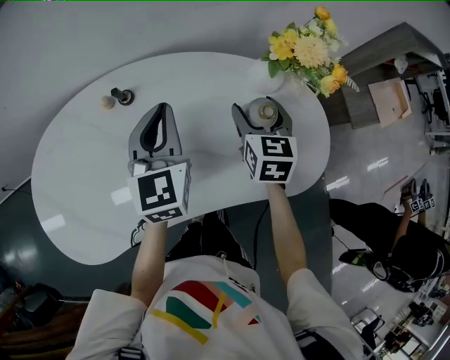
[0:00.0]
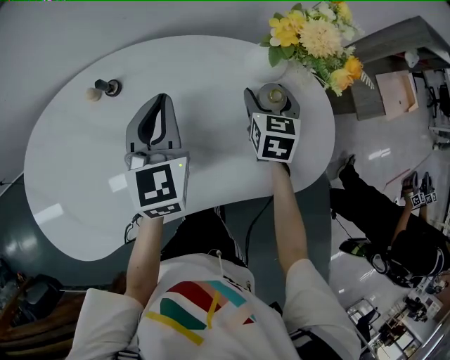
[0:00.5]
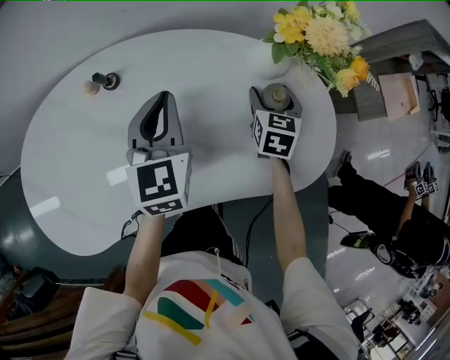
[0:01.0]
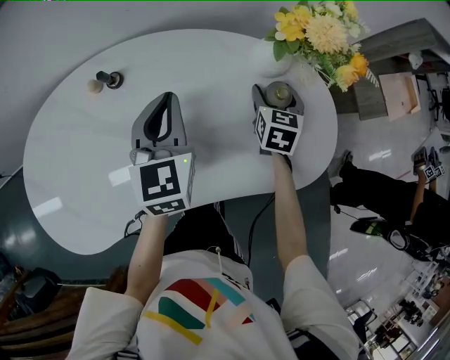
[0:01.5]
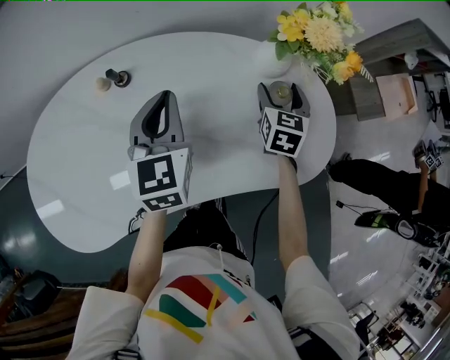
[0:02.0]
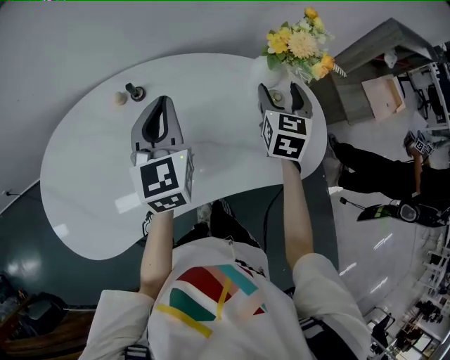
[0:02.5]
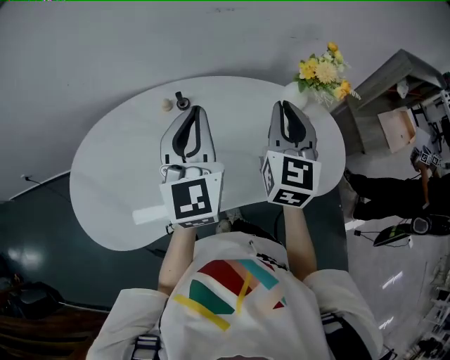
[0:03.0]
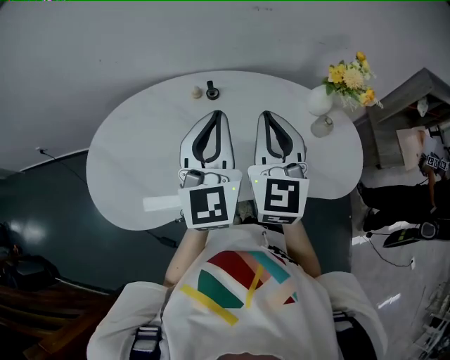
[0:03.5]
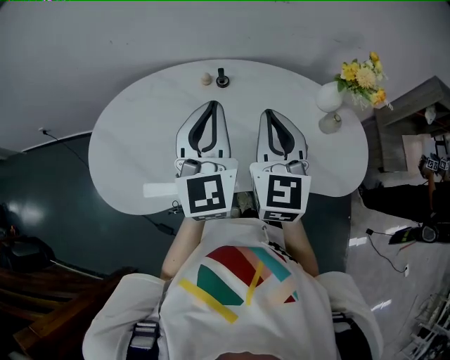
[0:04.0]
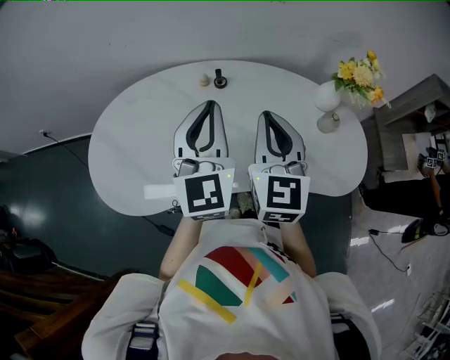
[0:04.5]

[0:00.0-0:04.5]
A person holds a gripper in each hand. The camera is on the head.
0:00.0 to 0:02.0: The right gripper heads to the right and downward, covering some 10 cm.
0:02.0 to 0:04.5: The left gripper moves upward, backward and to the left, roughly 25 cm, and turns by some 20 degrees, while the right gripper is displaced to the left, upward and backward by roughly 40 cm, swivels some 30 degrees, and closes its fingers.

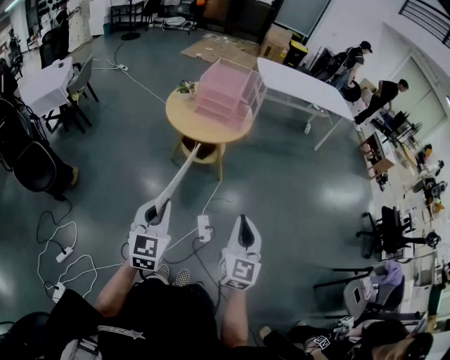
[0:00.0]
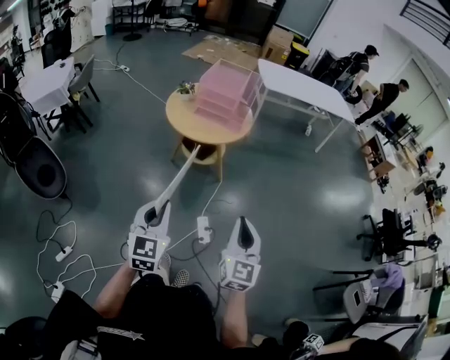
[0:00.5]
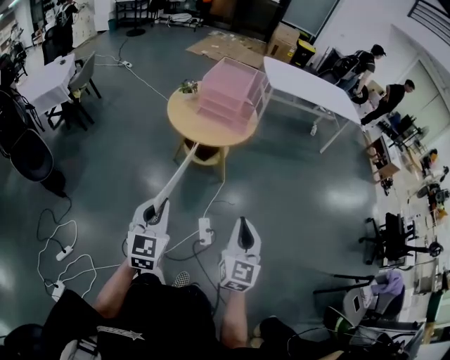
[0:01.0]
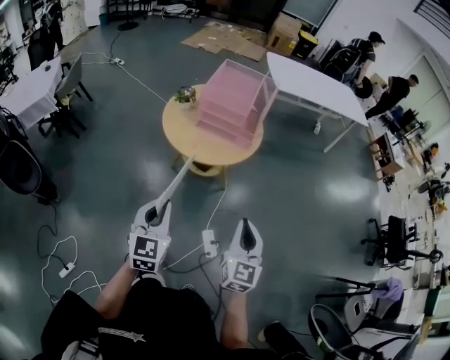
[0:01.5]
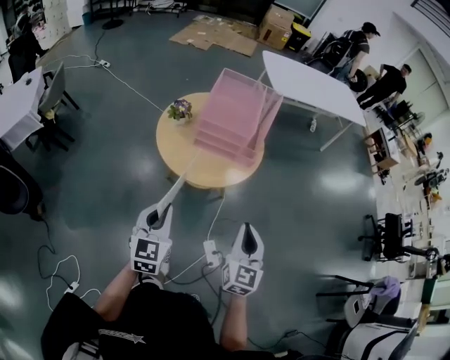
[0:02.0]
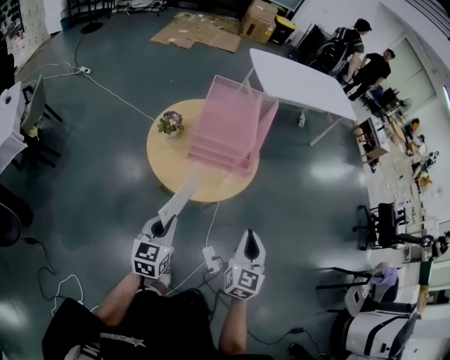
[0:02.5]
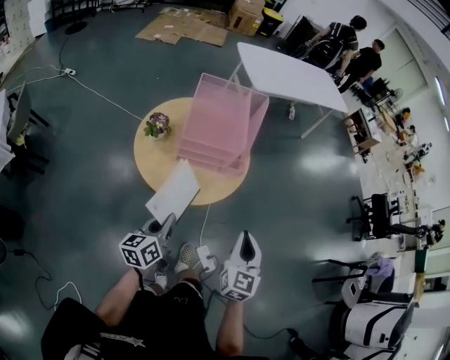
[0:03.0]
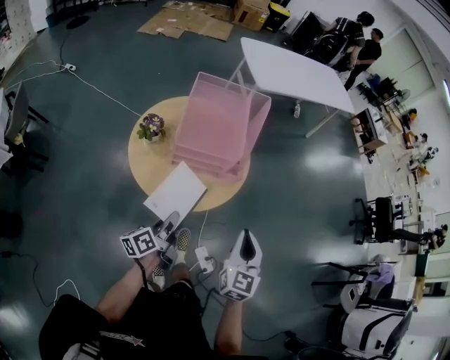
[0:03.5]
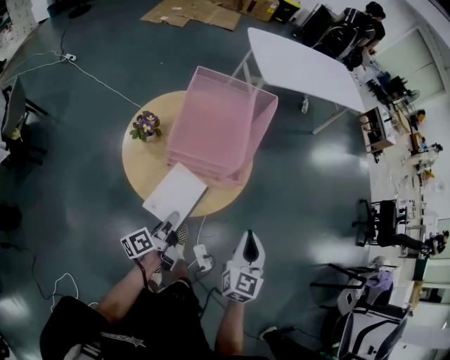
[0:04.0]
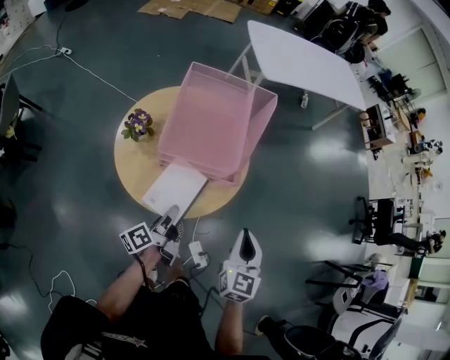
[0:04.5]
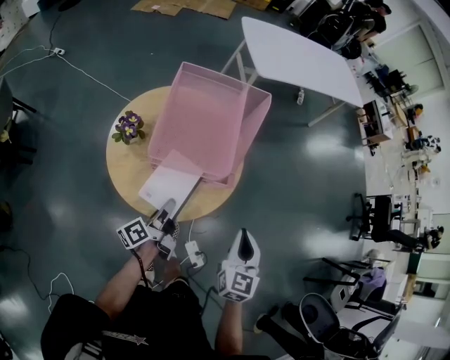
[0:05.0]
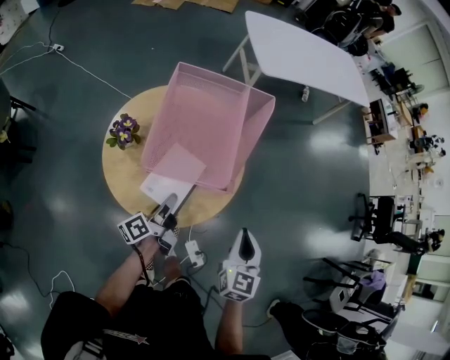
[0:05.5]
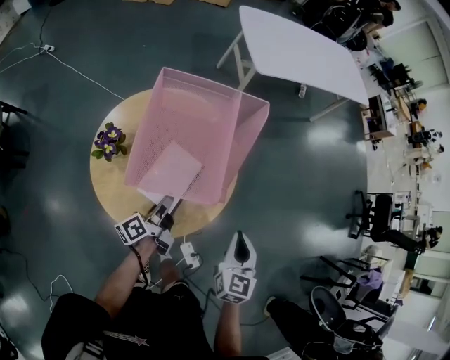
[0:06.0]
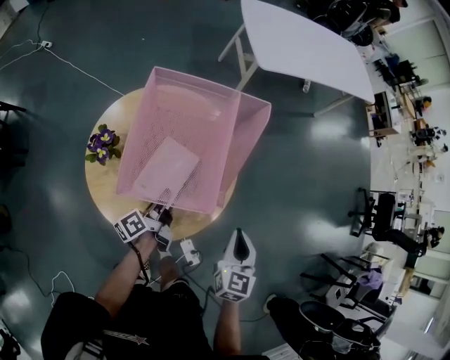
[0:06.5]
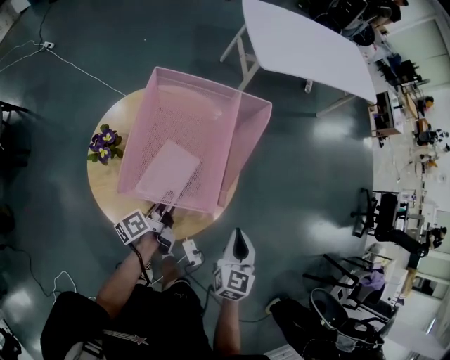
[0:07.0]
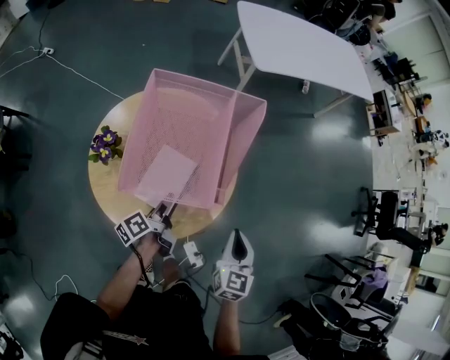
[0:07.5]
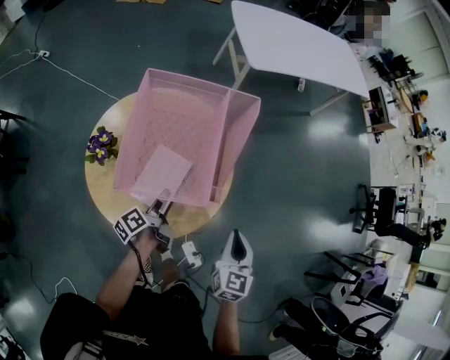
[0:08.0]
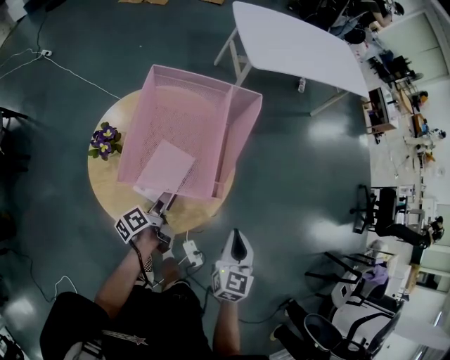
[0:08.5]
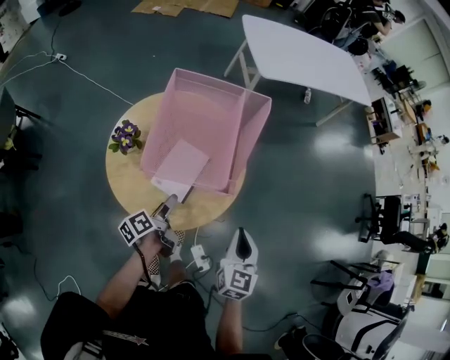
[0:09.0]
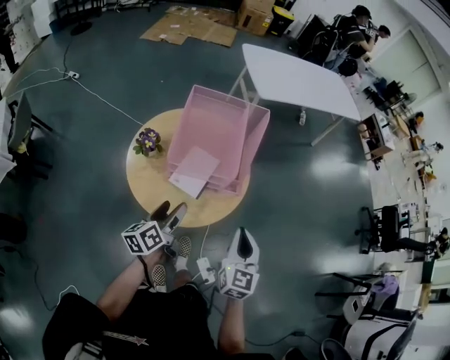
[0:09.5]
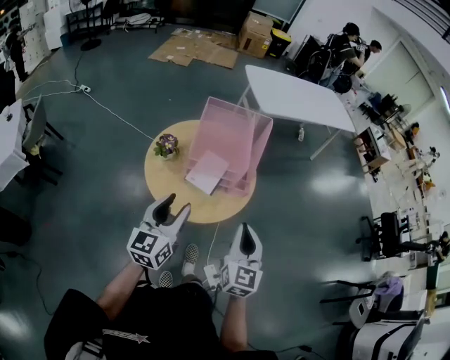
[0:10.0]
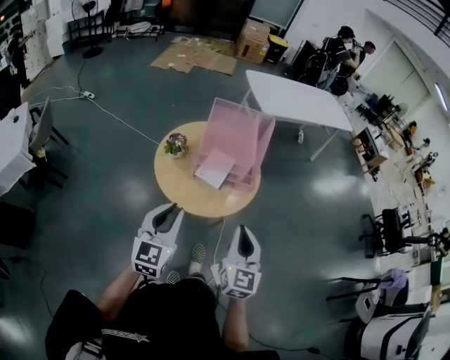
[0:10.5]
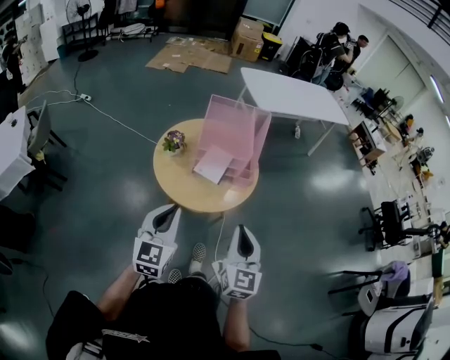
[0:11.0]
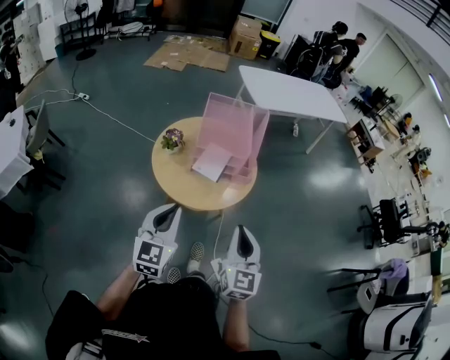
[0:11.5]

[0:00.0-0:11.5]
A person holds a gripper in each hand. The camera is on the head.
0:00.0 to 0:02.0: The grippers both shift forward by some 30 cm.
0:02.0 to 0:04.0: The right gripper shifts some 15 cm forward. Meanwhile the left gripper travels forward and downward by some 25 cm, and rolls counterclockwise, seen from behind, by roughly 80 degrees.
0:04.0 to 0:06.0: The left gripper goes about 15 cm forward. Meanwhile the right gripper goes about 15 cm forward and downward.
0:06.0 to 0:07.5: The left gripper opens.
0:07.5 to 0:09.5: The right gripper travels backward and upward by roughly 15 cm. Meanwhile the left gripper moves upward and backward, roughly 20 cm, changes its angle by some 30 degrees, and opens.
0:09.5 to 0:11.5: The left gripper shifts roughly 25 cm backward and upward, twists approximately 60 degrees clockwise, seen from behind, and closes up. Meanwhile the right gripper shifts about 20 cm backward, upward and to the left.

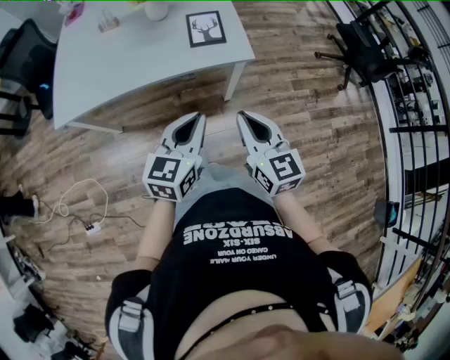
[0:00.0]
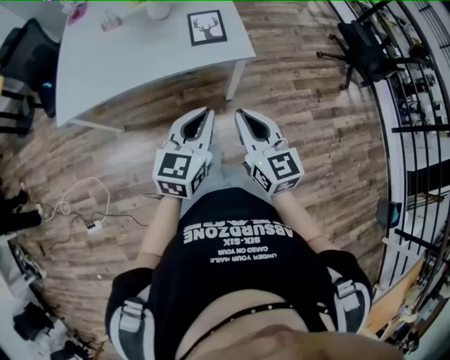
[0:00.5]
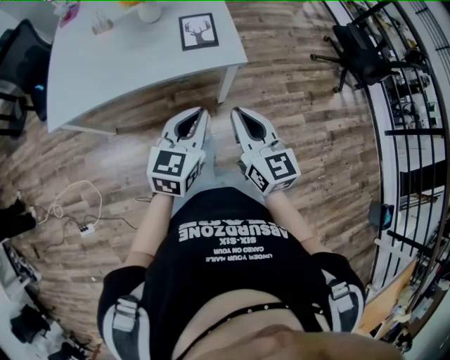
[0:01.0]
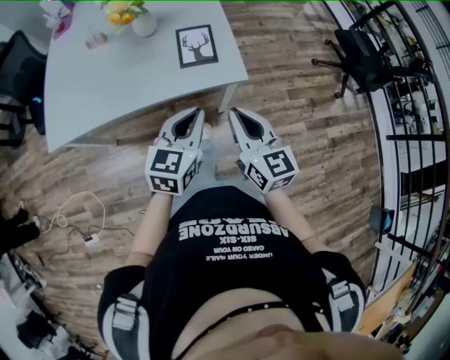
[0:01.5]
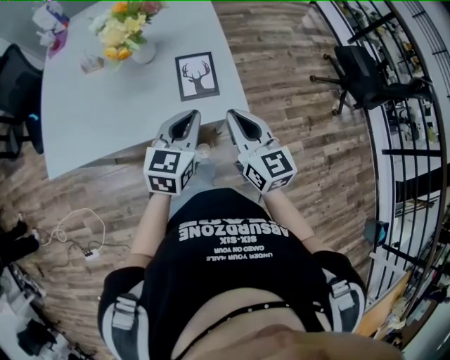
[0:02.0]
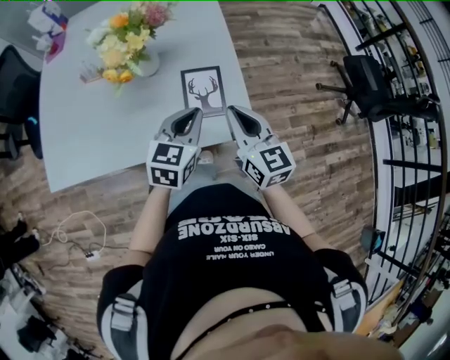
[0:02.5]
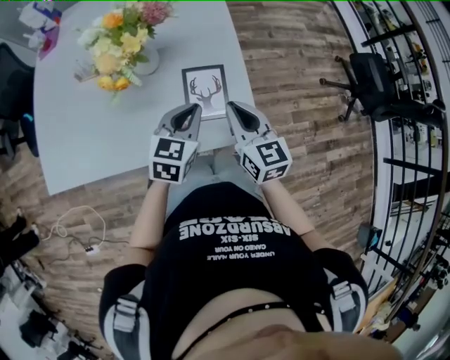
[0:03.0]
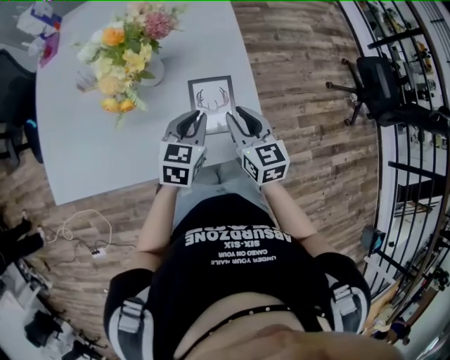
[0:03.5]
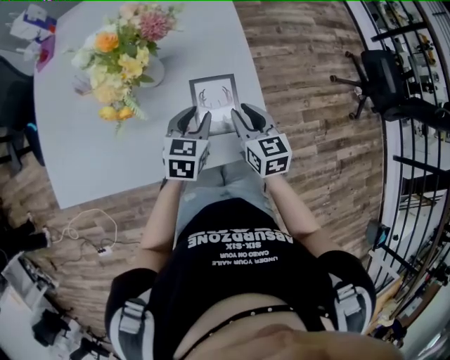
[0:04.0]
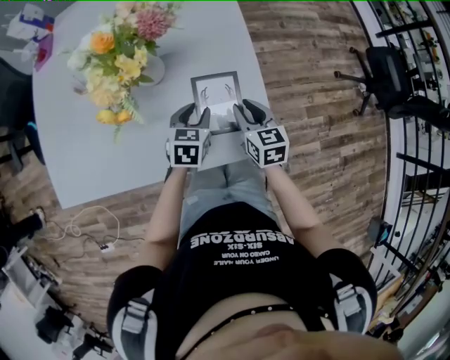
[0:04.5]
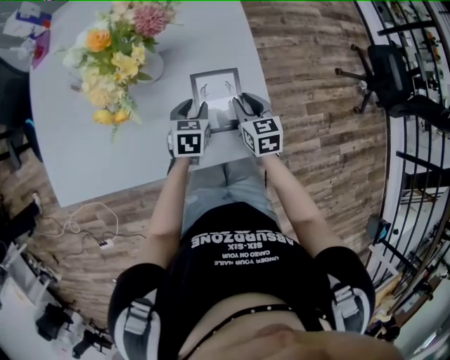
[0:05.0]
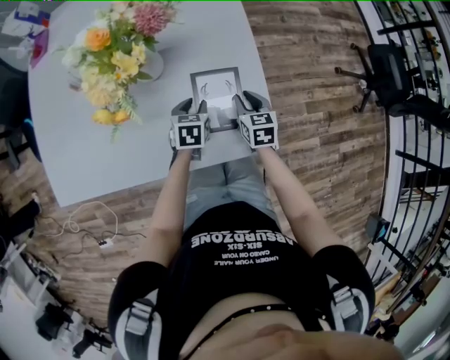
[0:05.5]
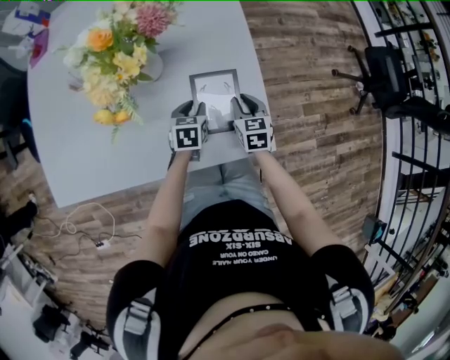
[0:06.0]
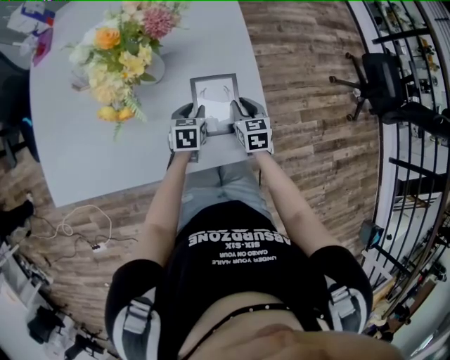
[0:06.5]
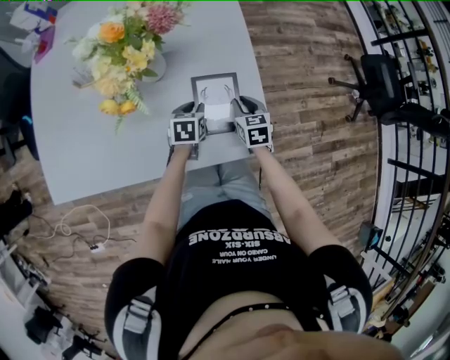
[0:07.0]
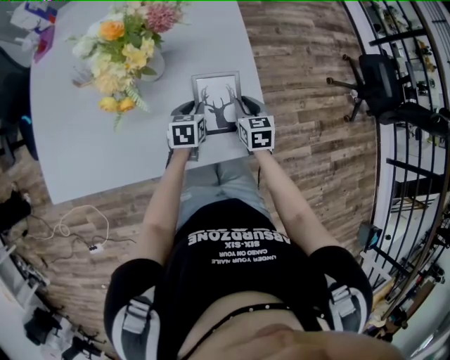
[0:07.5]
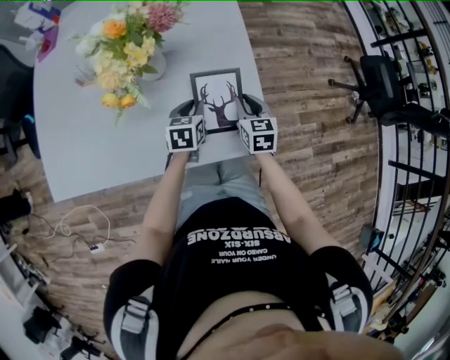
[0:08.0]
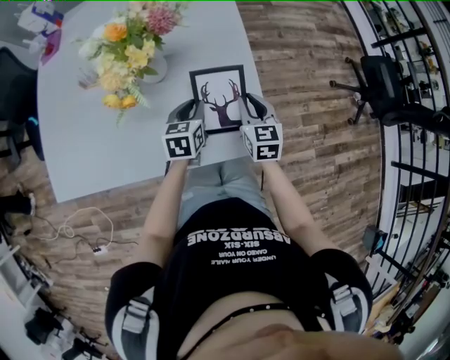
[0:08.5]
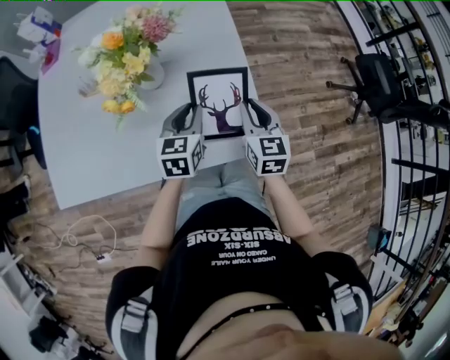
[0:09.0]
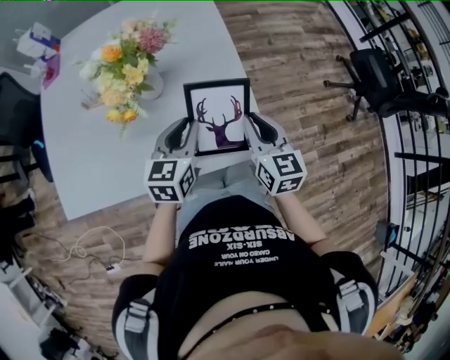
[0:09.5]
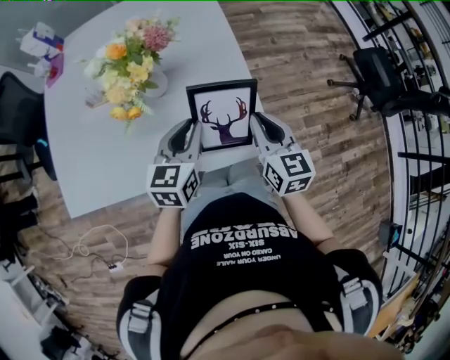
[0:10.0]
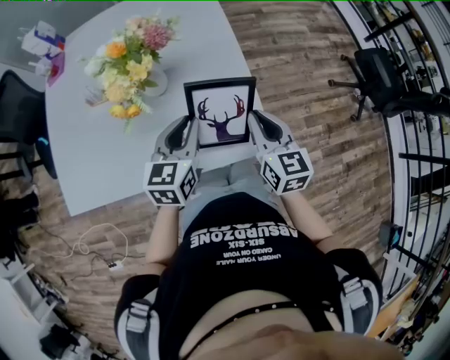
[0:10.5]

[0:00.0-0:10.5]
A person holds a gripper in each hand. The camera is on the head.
0:00.0 to 0:02.0: Both grippers move forward, roughly 25 cm.
0:02.0 to 0:04.0: Both grippers move forward and downward, some 25 cm. The left gripper opens up. The right gripper opens its fingers.
0:04.0 to 0:06.5: Both grippers travel together downward, approximately 15 cm.
0:06.5 to 0:08.5: The two grippers go about 10 cm upward.
0:08.5 to 0:10.5: The left gripper moves upward, about 15 cm; the right gripper shifts some 15 cm upward and backward.
